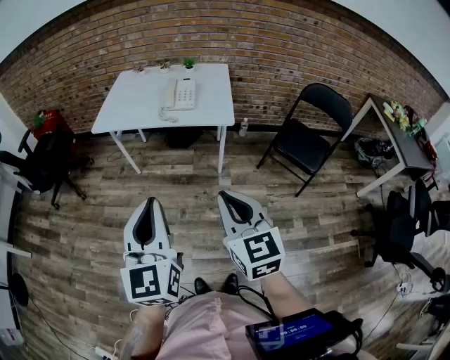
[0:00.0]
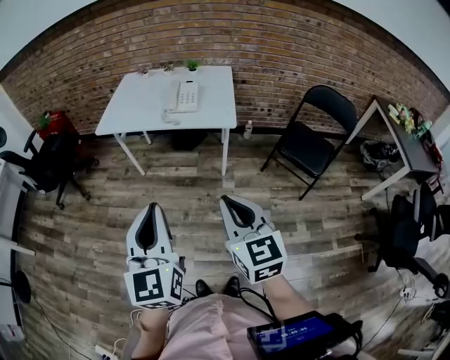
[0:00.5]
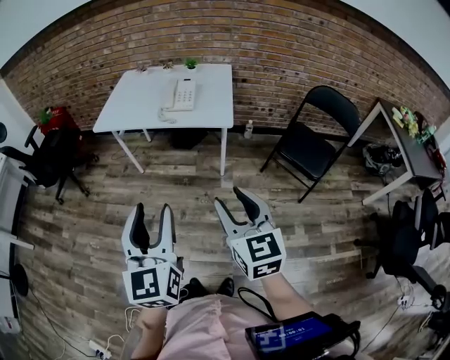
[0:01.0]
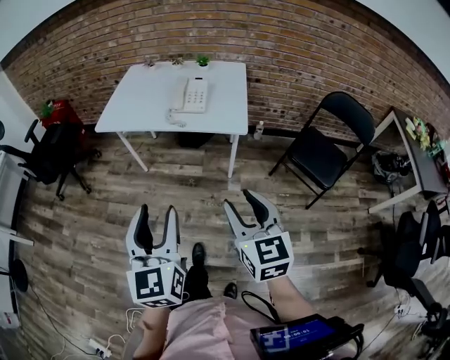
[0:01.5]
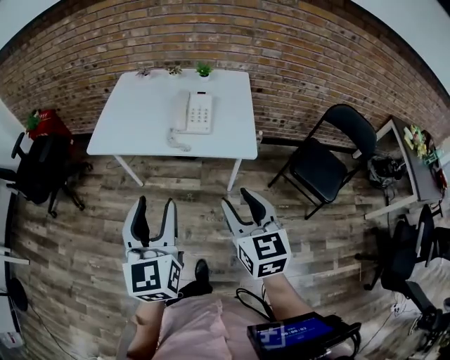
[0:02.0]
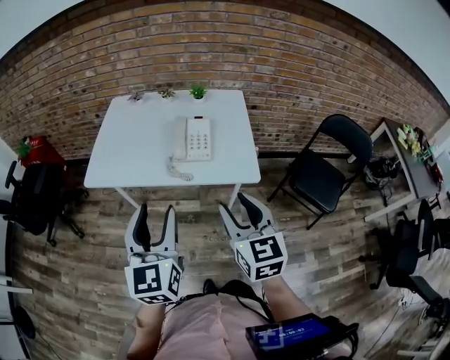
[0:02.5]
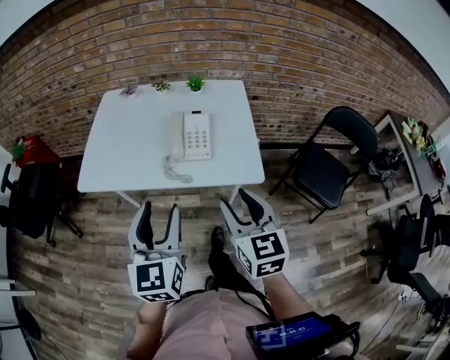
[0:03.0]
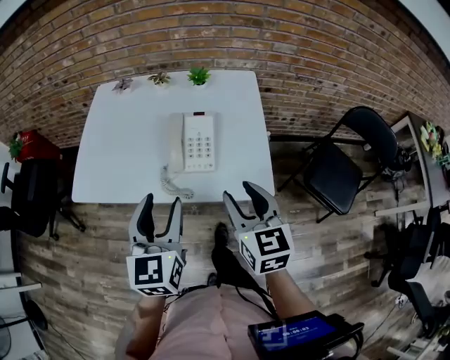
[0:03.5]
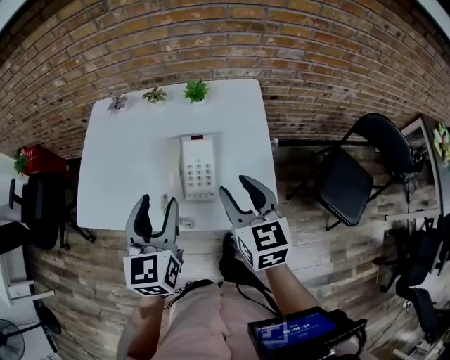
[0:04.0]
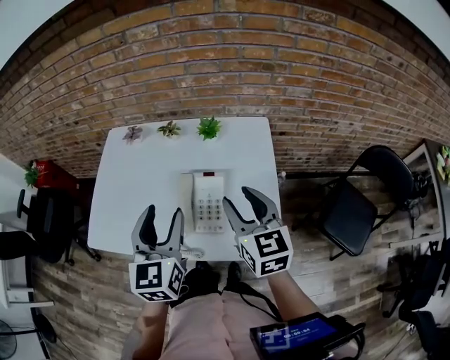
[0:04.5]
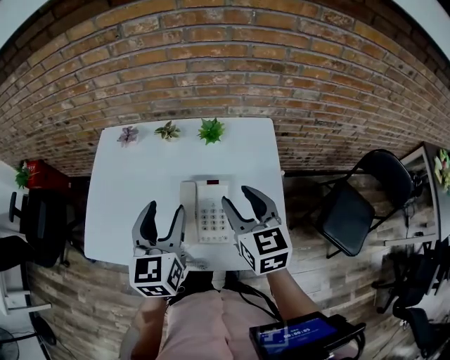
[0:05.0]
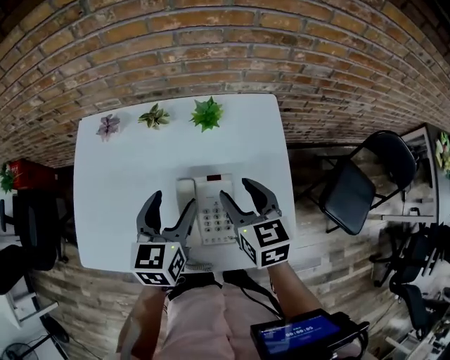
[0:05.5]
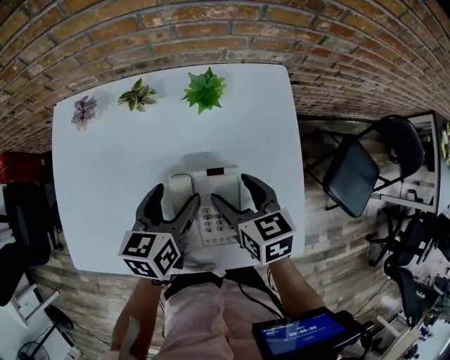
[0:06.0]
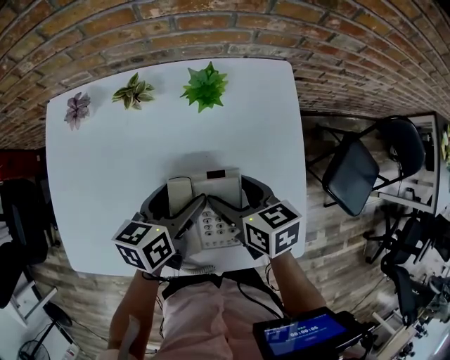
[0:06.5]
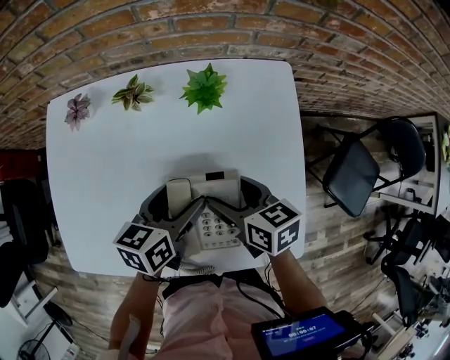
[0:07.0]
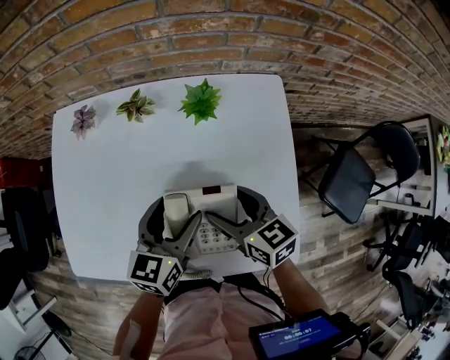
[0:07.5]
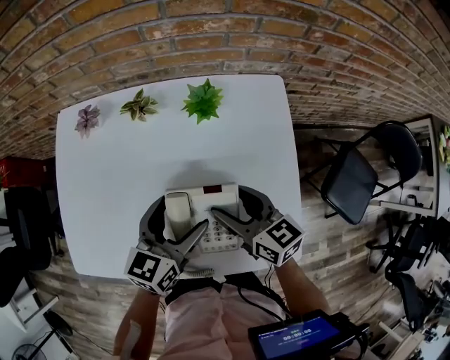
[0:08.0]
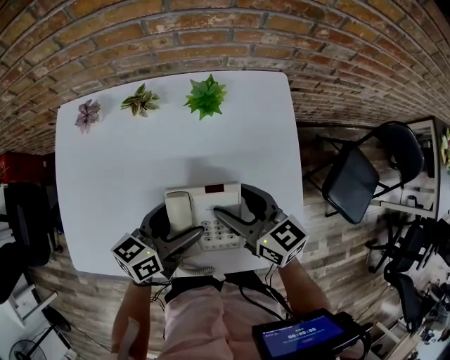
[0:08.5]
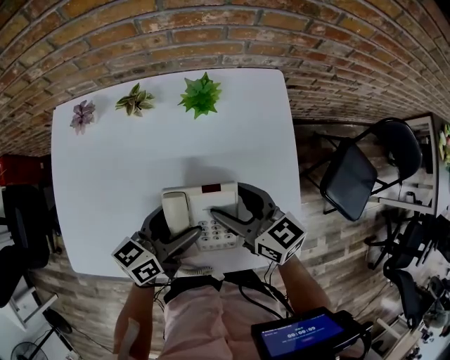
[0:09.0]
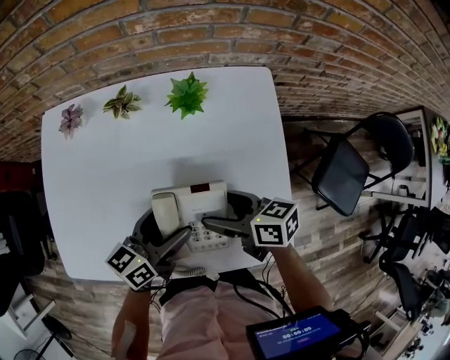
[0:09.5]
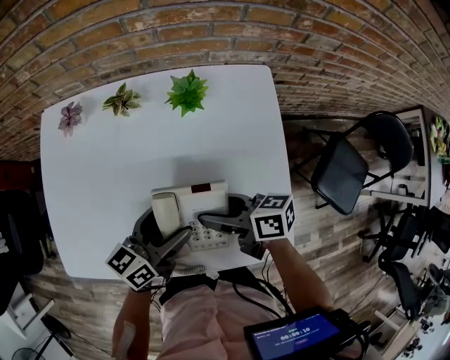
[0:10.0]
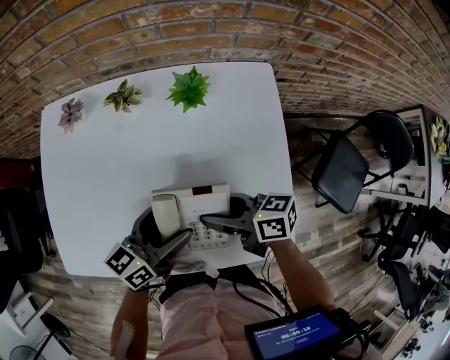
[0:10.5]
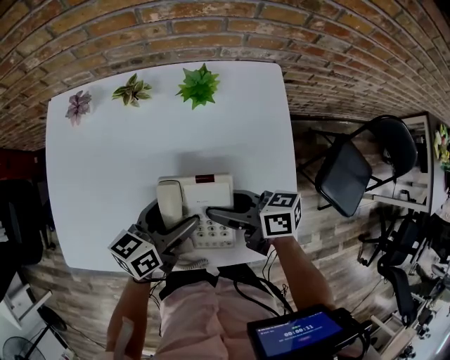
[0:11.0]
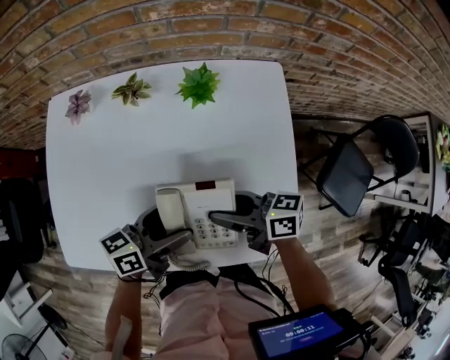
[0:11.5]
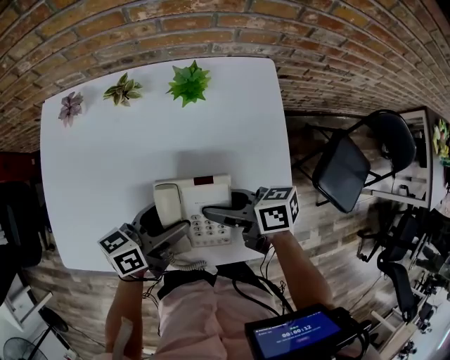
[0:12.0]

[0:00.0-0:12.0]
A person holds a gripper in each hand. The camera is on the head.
0:00.0 to 0:02.0: Both grippers move forward, roughly 25 cm. The left gripper opens its fingers; the right gripper opens up.
0:02.0 to 0:04.0: Both grippers move forward, about 35 cm.
0:04.0 to 0:06.0: The two grippers go approximately 25 cm forward and downward. The left gripper changes its angle by roughly 40 degrees. The right gripper turns by some 20 degrees, and opens up.
0:06.0 to 0:08.0: The right gripper turns by some 20 degrees.
0:08.0 to 0:10.0: The left gripper changes its angle by about 20 degrees. The right gripper swivels approximately 30 degrees.
0:10.0 to 0:12.0: The grippers make only small movements.

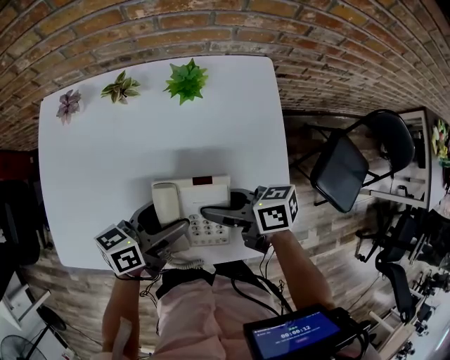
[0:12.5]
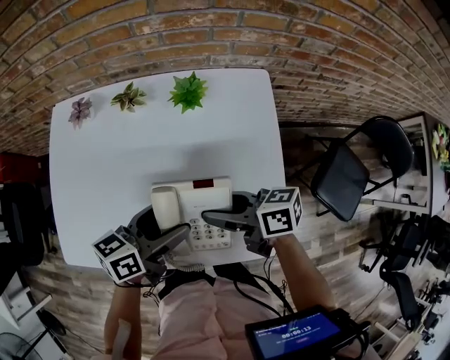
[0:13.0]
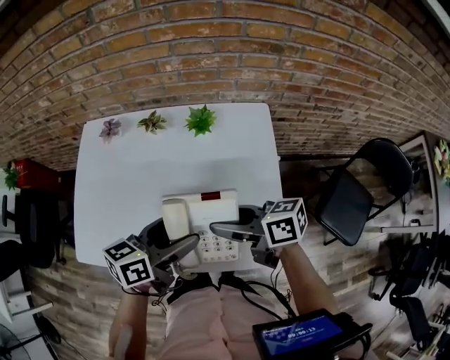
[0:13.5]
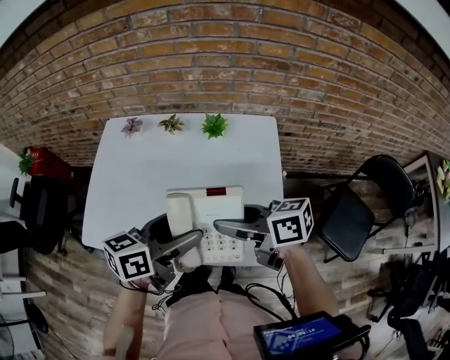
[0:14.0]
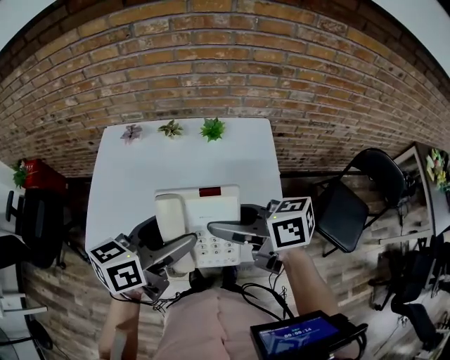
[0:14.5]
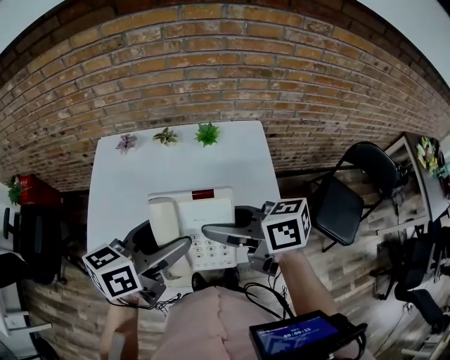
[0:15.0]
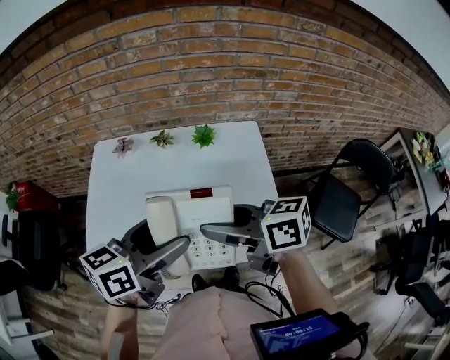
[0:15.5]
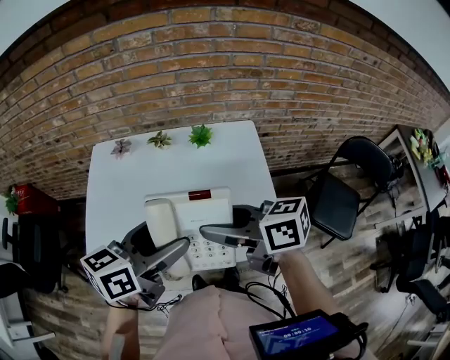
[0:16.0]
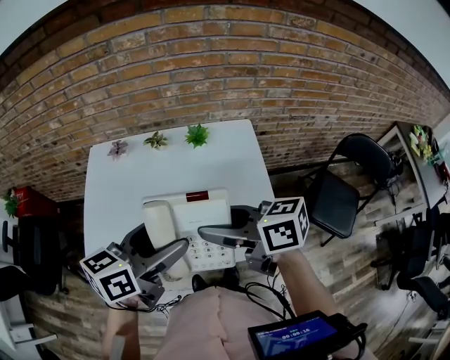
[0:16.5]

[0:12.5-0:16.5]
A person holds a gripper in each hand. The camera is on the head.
0:12.5 to 0:14.5: The two grippers go some 20 cm upward.
0:14.5 to 0:16.5: The grippers stay close to where they were, moving slightly.

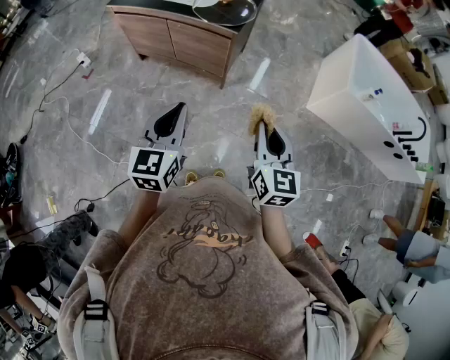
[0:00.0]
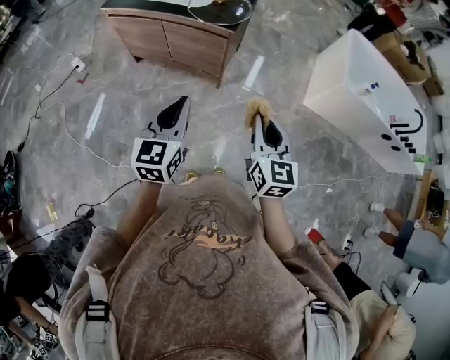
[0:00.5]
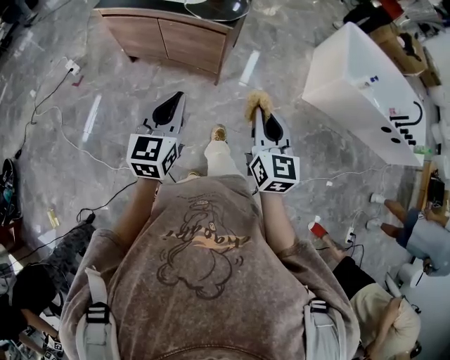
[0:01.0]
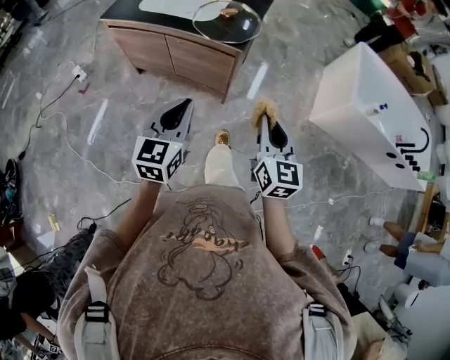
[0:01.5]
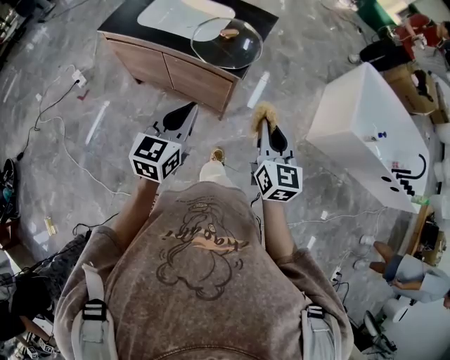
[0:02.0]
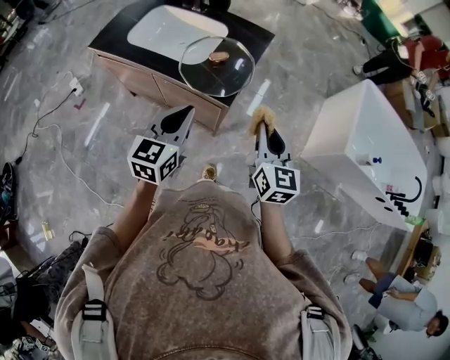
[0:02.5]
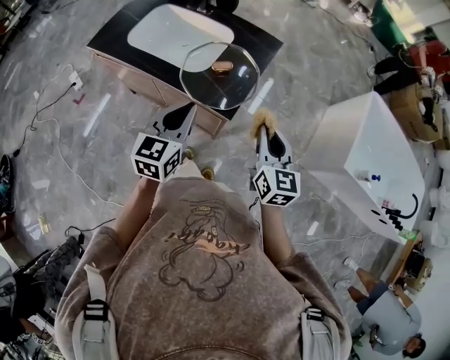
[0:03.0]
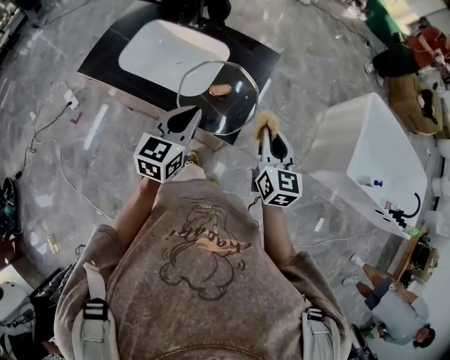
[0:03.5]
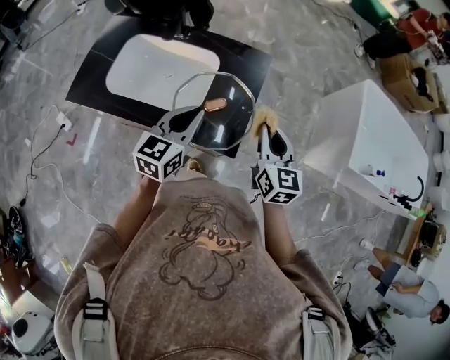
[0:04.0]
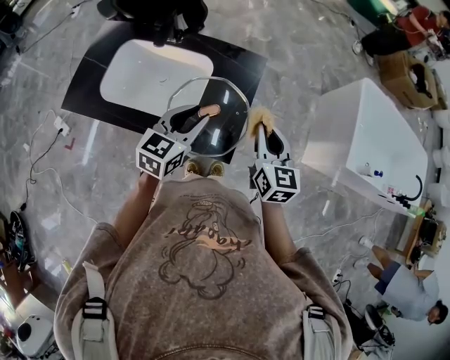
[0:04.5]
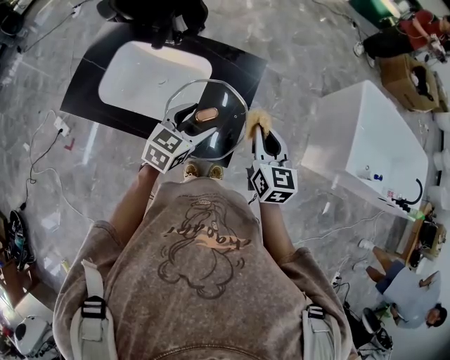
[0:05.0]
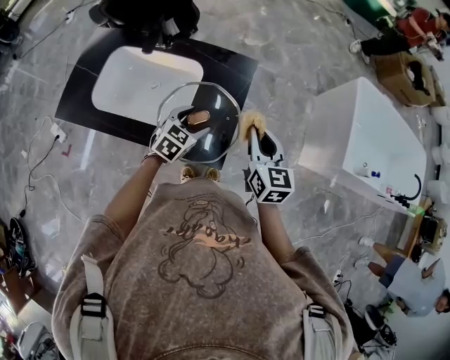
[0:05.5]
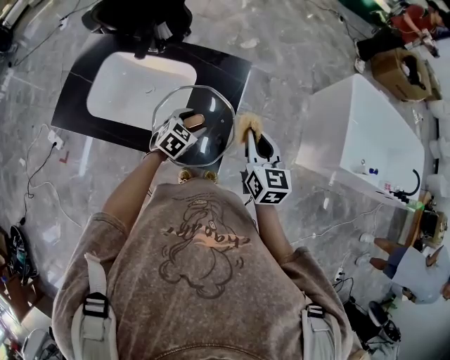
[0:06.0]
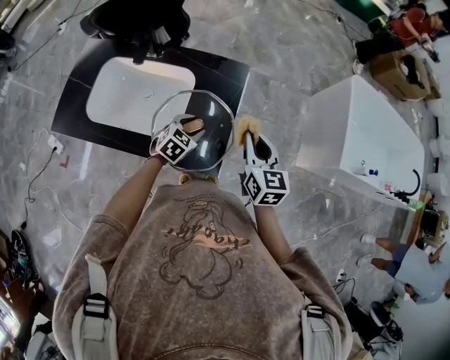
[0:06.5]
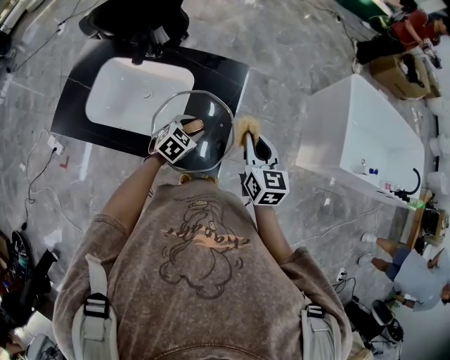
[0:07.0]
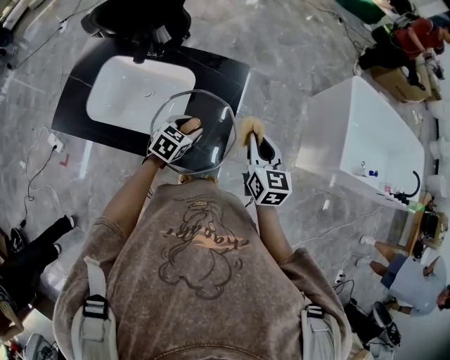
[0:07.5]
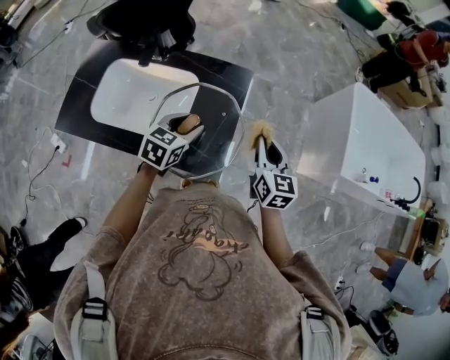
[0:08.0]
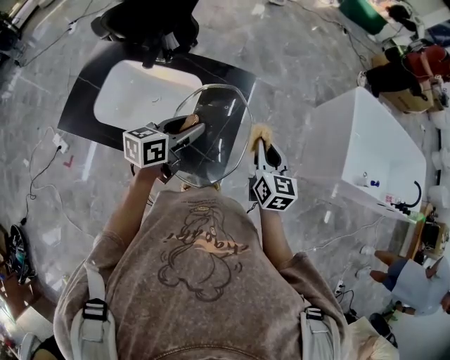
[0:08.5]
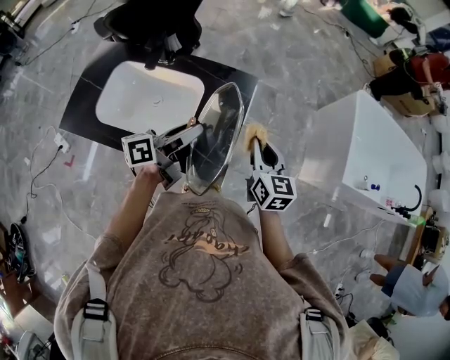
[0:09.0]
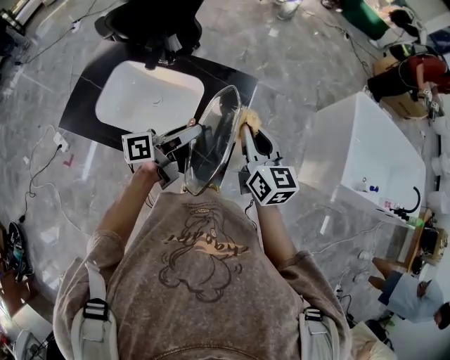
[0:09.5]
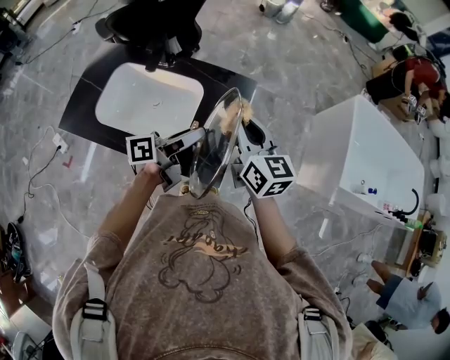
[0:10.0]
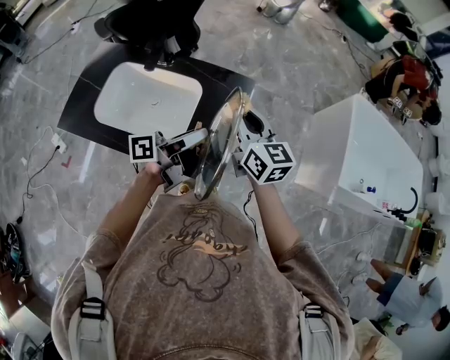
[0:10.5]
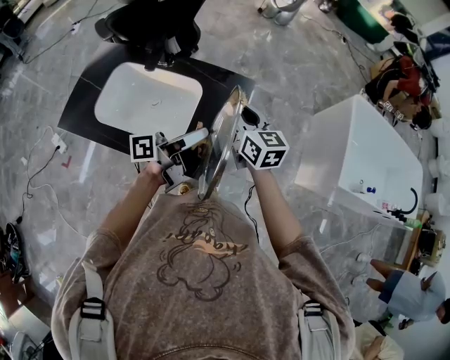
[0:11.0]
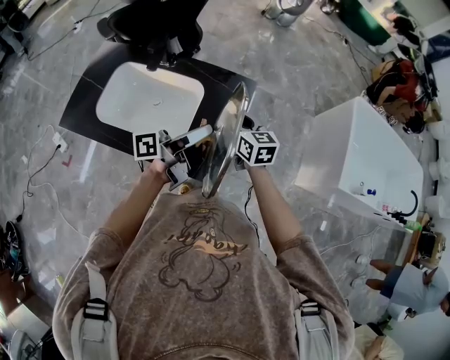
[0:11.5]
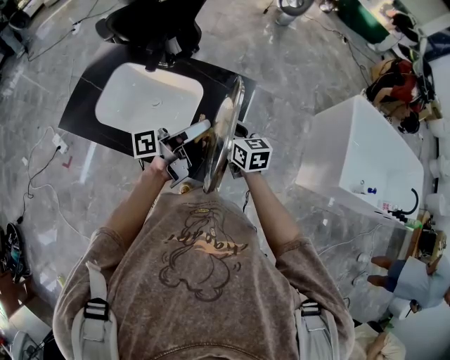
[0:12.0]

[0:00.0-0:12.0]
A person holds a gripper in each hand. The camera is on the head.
0:00.0 to 0:02.0: The two grippers go about 25 cm forward.
0:02.0 to 0:04.0: The grippers both shift forward by about 30 cm.
0:04.0 to 0:06.0: The right gripper ends up approximately 5 cm from where it was. The left gripper heads downward and forward, covering about 20 cm, points its fingers roughly 30 degrees further downward, and opens up.
0:06.0 to 0:08.0: The left gripper heads upward, covering about 10 cm.
0:08.0 to 0:10.0: The left gripper moves upward, about 10 cm, and points its fingers some 40 degrees further upward. Meanwhile the right gripper moves to the left and upward, about 15 cm, and turns by about 20 degrees.
0:10.0 to 0:12.0: The right gripper is displaced downward by about 15 cm.
